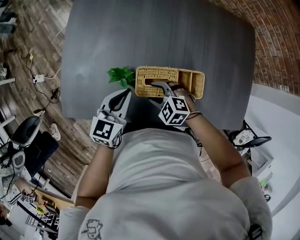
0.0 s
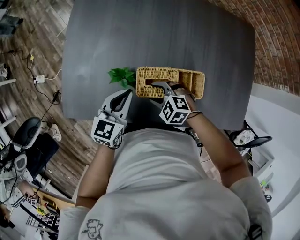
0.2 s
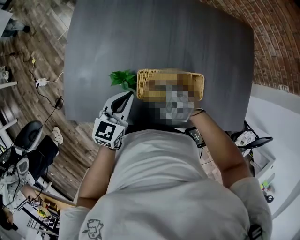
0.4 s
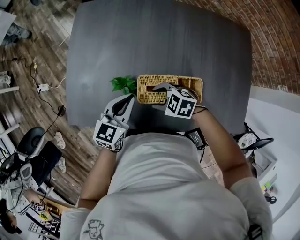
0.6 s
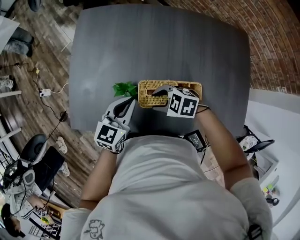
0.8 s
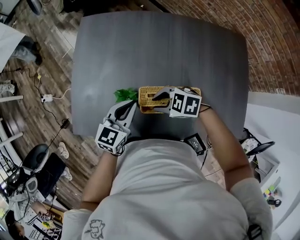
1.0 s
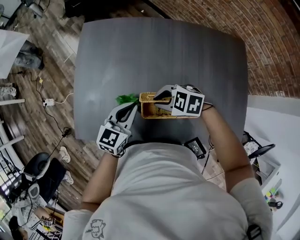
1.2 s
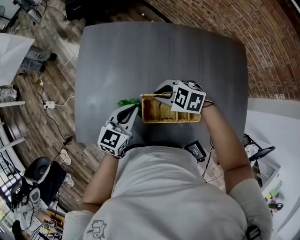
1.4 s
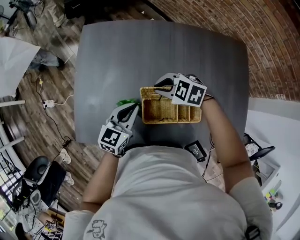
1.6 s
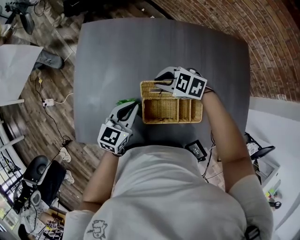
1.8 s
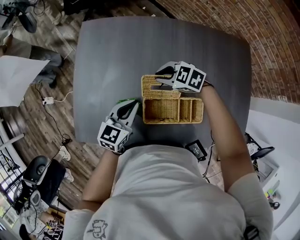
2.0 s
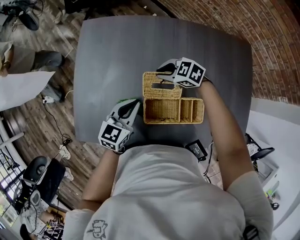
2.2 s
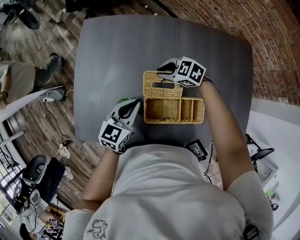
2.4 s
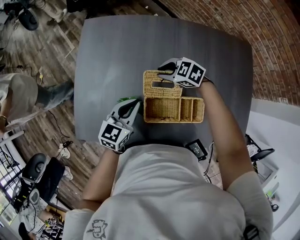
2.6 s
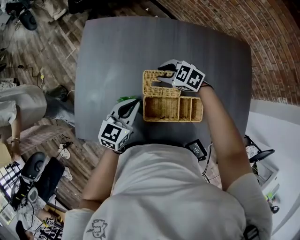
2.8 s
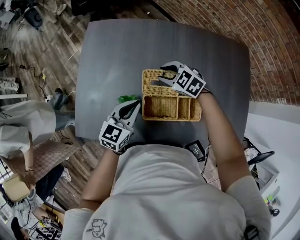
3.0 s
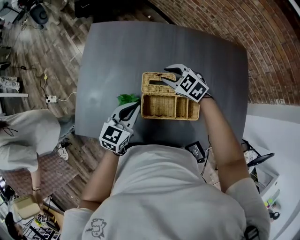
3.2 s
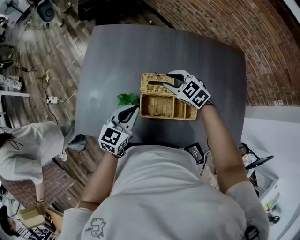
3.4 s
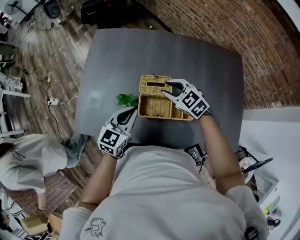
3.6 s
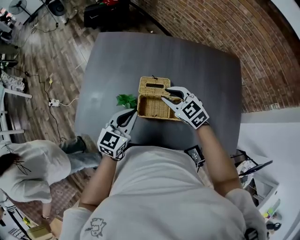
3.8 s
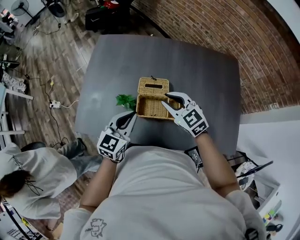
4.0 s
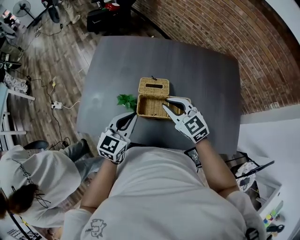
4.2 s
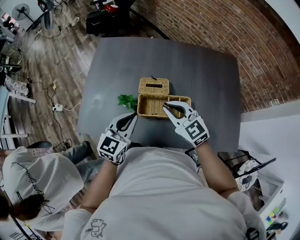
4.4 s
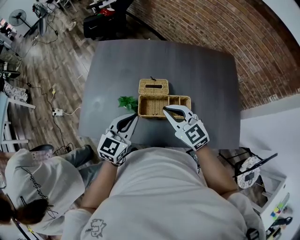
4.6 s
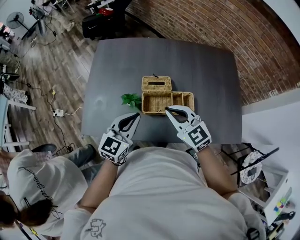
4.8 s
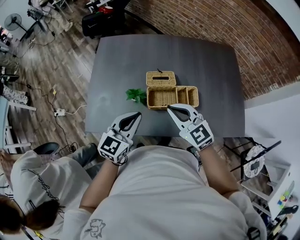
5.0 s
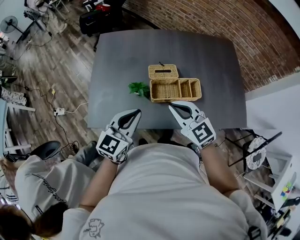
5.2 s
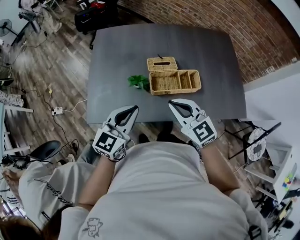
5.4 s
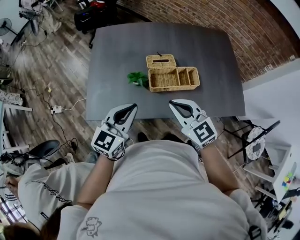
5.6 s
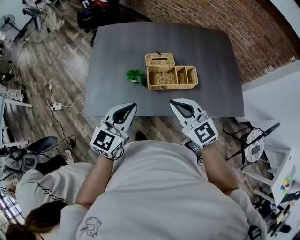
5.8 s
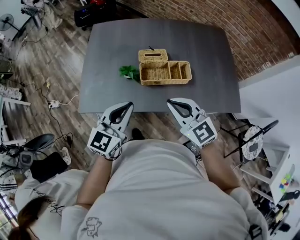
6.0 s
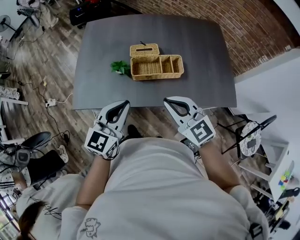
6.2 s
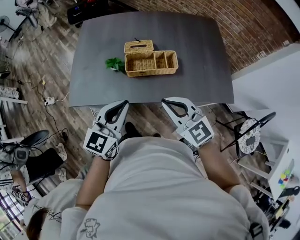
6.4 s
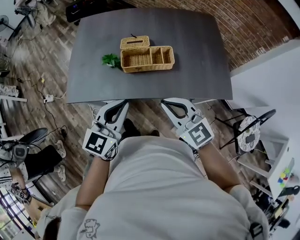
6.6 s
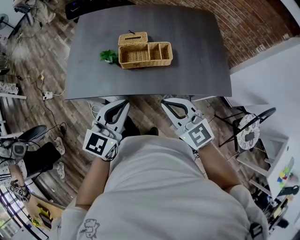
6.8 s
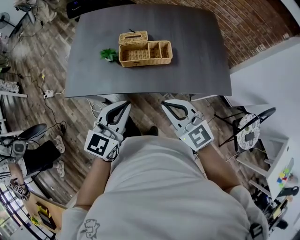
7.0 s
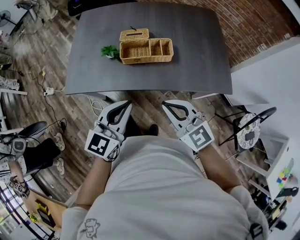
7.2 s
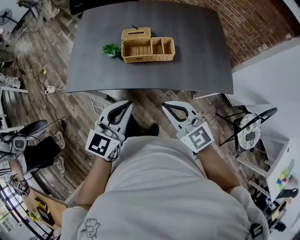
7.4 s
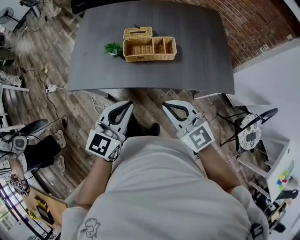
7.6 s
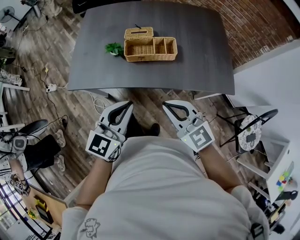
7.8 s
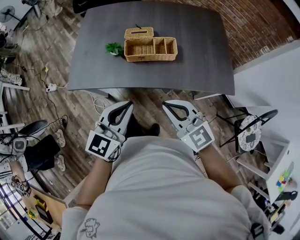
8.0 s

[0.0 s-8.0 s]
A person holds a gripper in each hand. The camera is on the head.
0.0 to 1.6 s: The right gripper changes place by approximately 20 cm, and closes. Meanwhile the left gripper shifts by about 5 cm.
1.6 to 3.2 s: The right gripper shifts about 5 cm to the right, and opens its fingers.
3.2 to 4.8 s: The left gripper moves backward and upward, some 15 cm. The right gripper shifts about 25 cm backward and upward, rotates about 30 degrees, and closes its fingers.
4.8 to 6.4 s: The two grippers go about 20 cm backward.
6.4 to 8.0 s: Both grippers travel together backward, approximately 10 cm.

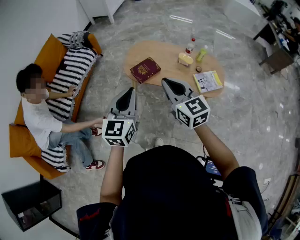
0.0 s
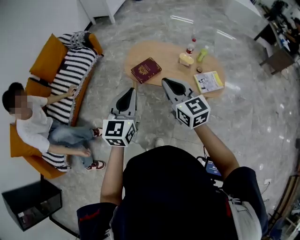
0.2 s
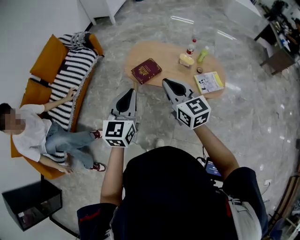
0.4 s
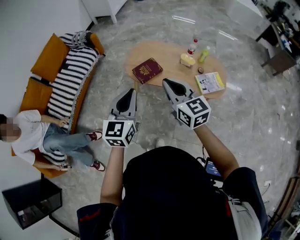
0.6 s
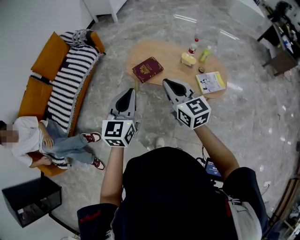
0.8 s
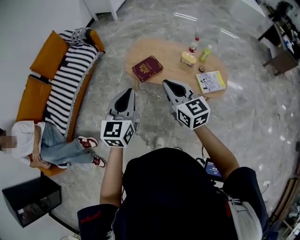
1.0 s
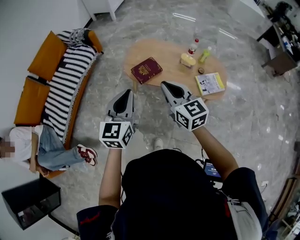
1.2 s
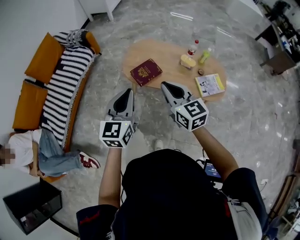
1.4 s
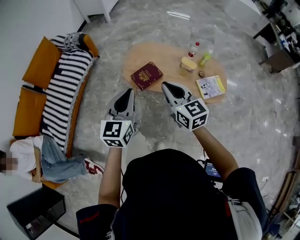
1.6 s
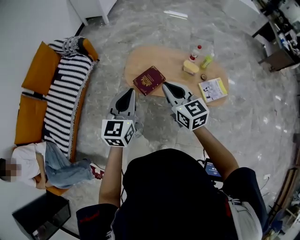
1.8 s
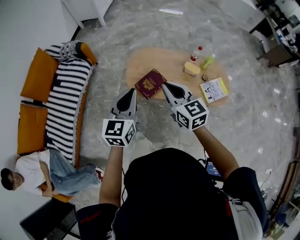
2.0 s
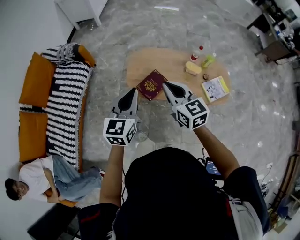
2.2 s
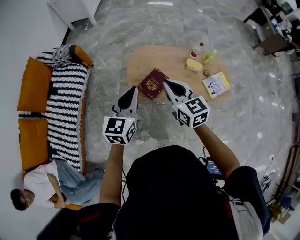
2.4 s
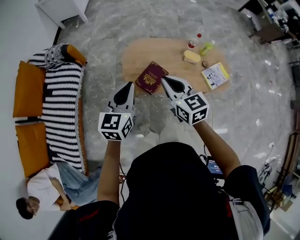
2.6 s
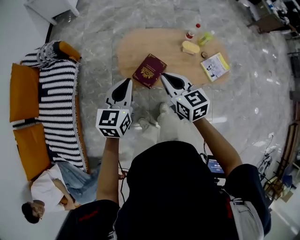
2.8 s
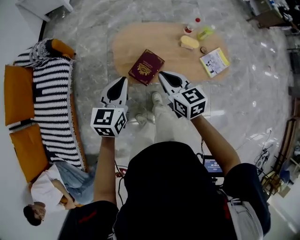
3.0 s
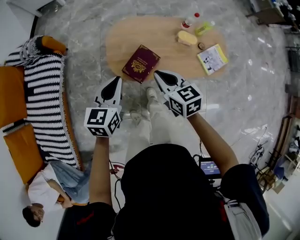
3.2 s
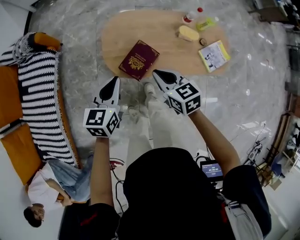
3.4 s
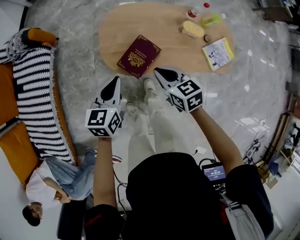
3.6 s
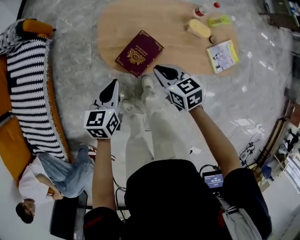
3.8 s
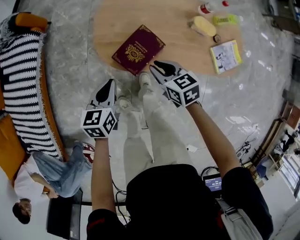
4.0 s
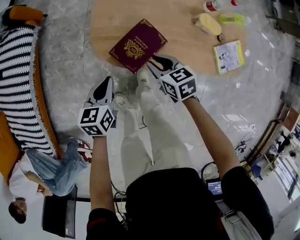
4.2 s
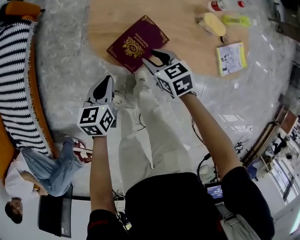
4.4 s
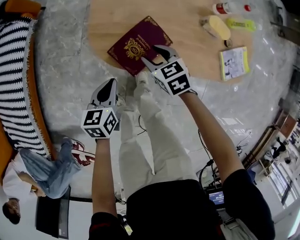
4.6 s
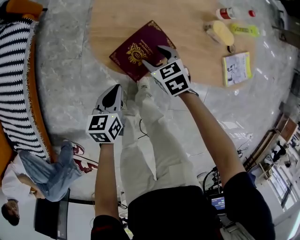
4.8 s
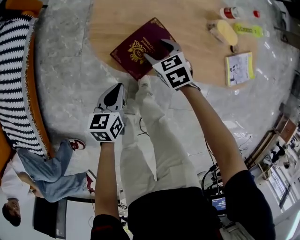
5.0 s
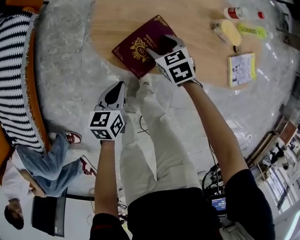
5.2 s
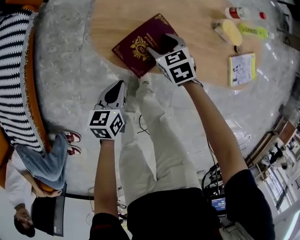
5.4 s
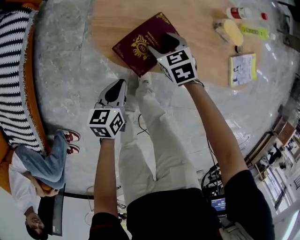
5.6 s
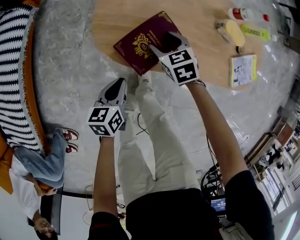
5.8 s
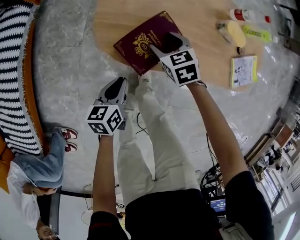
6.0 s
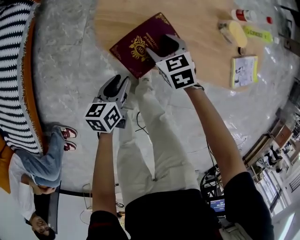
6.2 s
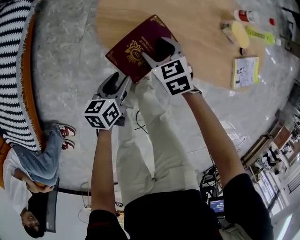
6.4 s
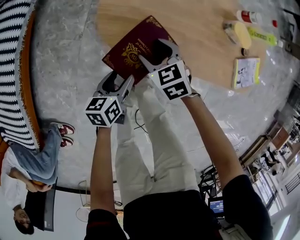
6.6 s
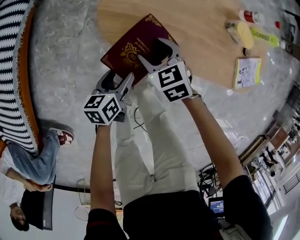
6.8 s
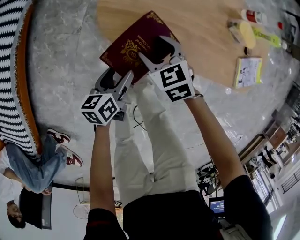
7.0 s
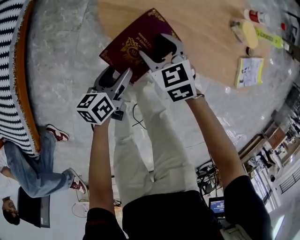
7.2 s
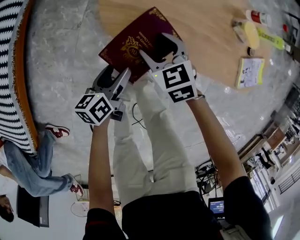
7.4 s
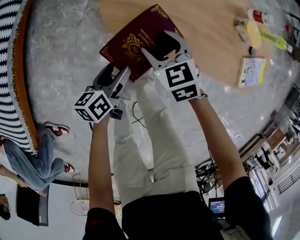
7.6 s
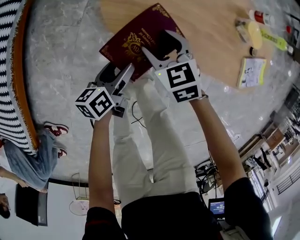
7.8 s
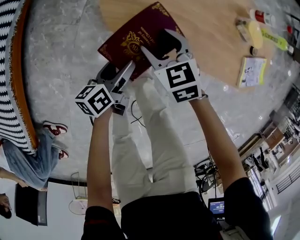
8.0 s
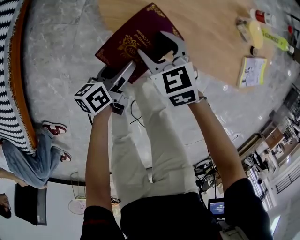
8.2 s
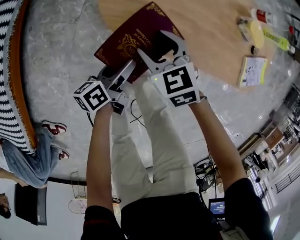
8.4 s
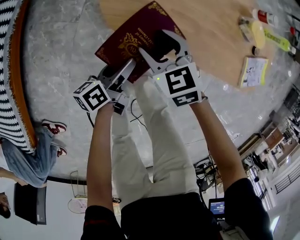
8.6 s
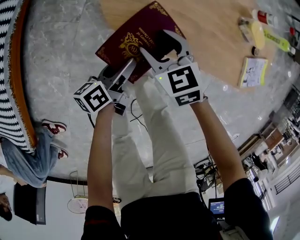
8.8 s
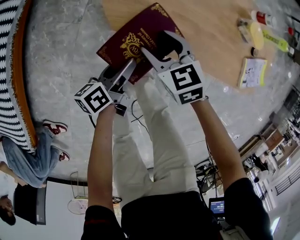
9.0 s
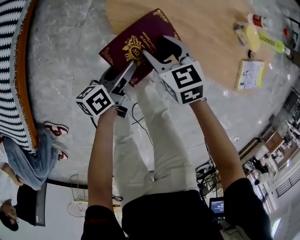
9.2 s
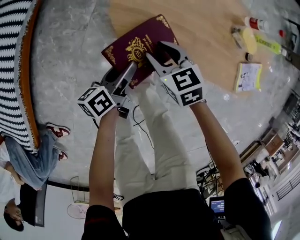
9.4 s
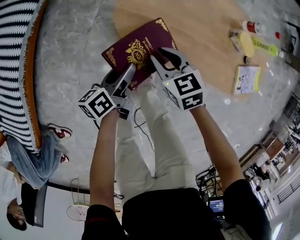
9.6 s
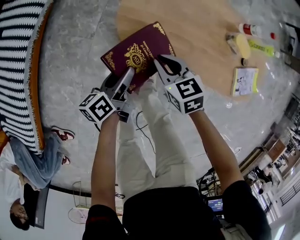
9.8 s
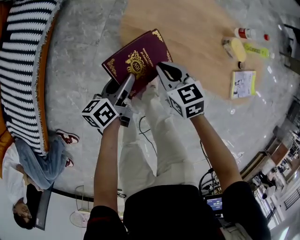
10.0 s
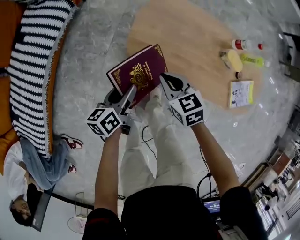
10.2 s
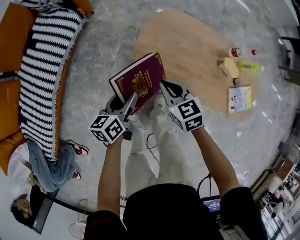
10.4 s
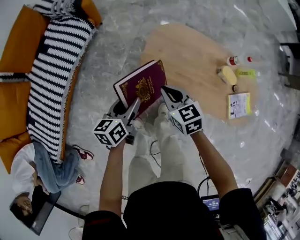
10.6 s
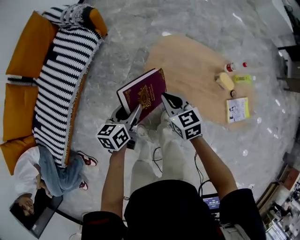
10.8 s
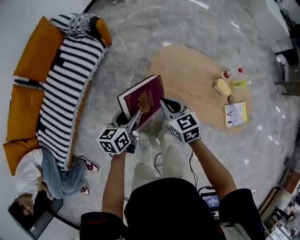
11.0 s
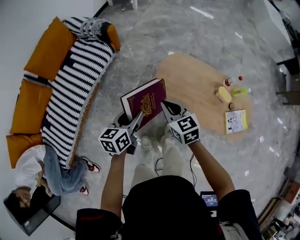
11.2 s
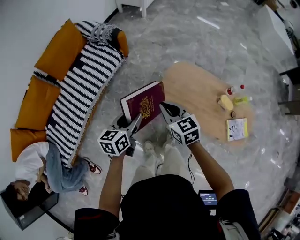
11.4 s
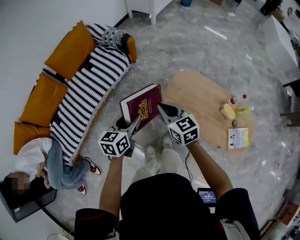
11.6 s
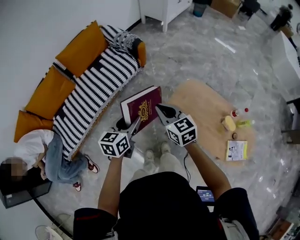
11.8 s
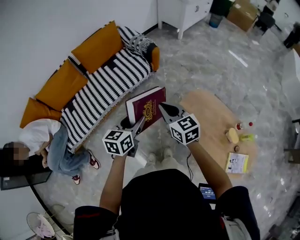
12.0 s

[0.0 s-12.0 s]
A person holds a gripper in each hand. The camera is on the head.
0.0 to 1.6 s: Both grippers travel together forward, roughly 10 cm.
1.6 to 3.0 s: The two grippers go about 25 cm forward, downward and to the left. The left gripper changes its angle by roughly 20 degrees; the right gripper turns by about 20 degrees.
3.0 to 4.4 s: Both grippers travel together downward, some 35 cm. The right gripper turns by approximately 30 degrees, and opens, while the left gripper rotates roughly 30 degrees.
4.4 to 6.0 s: The left gripper moves downward, approximately 10 cm. The right gripper travels downward and forward by about 10 cm, and opens its fingers.
6.0 to 7.6 s: The right gripper moves to the left and backward, approximately 10 cm, while the left gripper shifts by some 5 cm, and opens up.
7.6 to 9.0 s: There are only small adjustments of the grippers.
9.0 to 10.4 s: The left gripper shifts approximately 25 cm upward and to the left, and changes its angle by approximately 20 degrees; the right gripper is displaced upward by roughly 20 cm, and closes its fingers.
10.4 to 12.0 s: Both grippers move upward and to the left, about 35 cm. The left gripper rotates approximately 30 degrees; the right gripper turns by about 30 degrees.

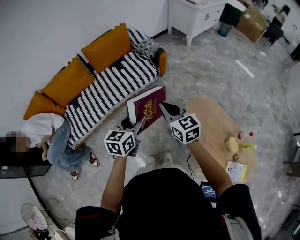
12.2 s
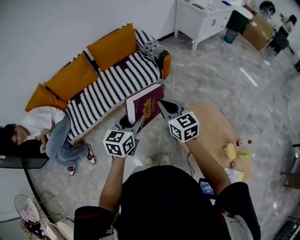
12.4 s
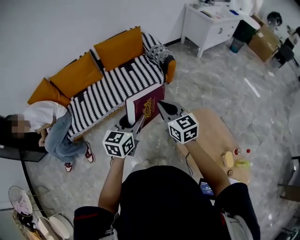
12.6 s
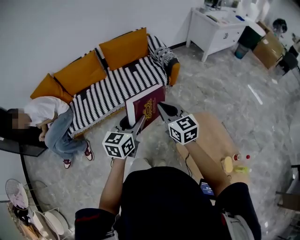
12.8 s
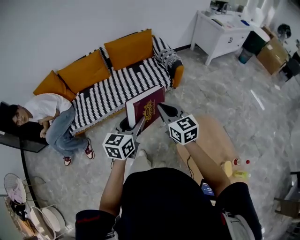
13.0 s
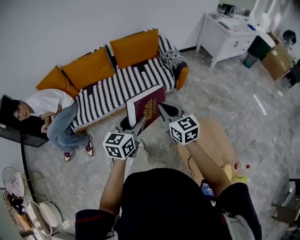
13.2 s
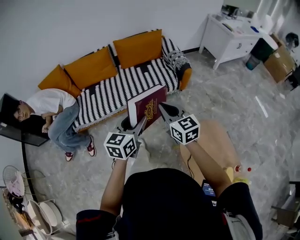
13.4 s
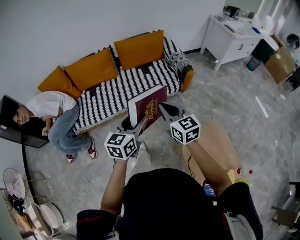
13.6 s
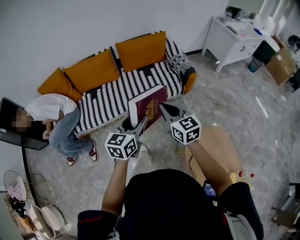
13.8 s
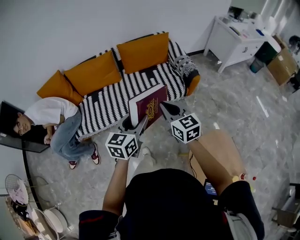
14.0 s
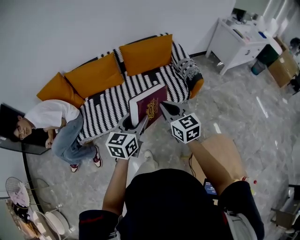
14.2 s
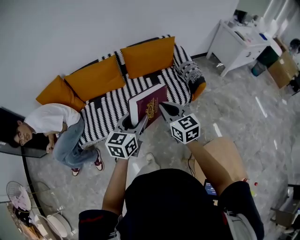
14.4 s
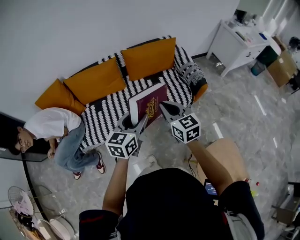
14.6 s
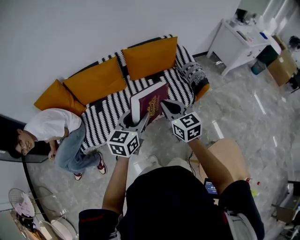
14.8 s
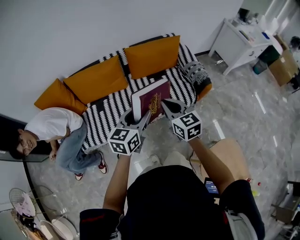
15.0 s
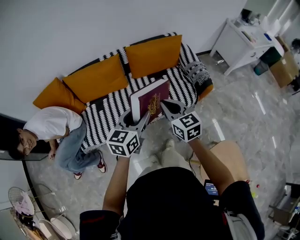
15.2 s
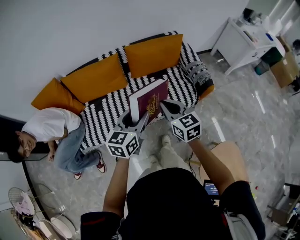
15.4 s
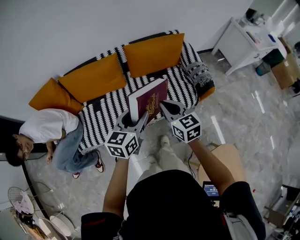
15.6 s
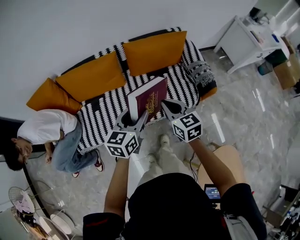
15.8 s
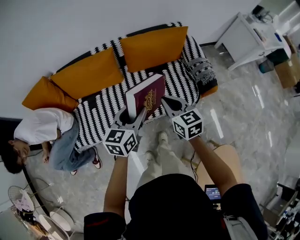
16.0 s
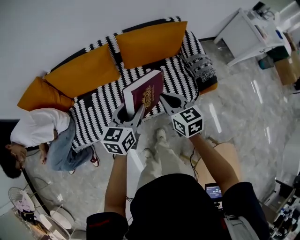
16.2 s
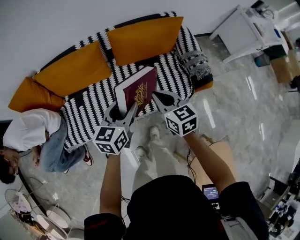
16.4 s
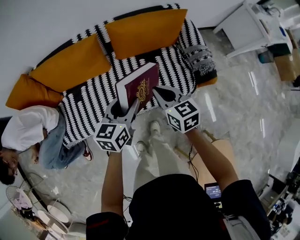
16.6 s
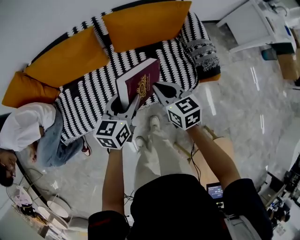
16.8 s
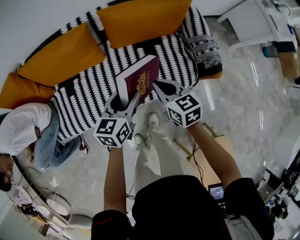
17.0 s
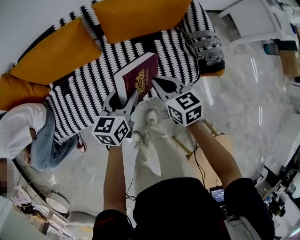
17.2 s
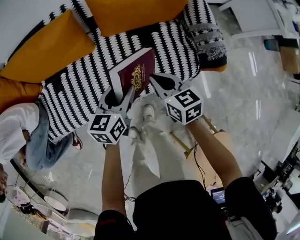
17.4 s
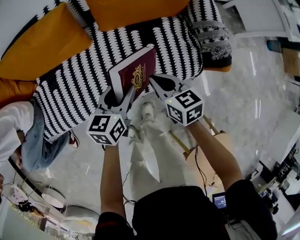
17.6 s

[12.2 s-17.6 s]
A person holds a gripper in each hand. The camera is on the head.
12.2 to 13.6 s: The right gripper heads to the left and forward, covering some 10 cm. Meanwhile the left gripper moves to the left, some 5 cm.
13.6 to 15.0 s: The two grippers go some 30 cm forward and to the left.
15.0 to 16.2 s: Both grippers travel together forward and downward, about 20 cm.
16.2 to 17.6 s: Both grippers move downward, about 25 cm.
